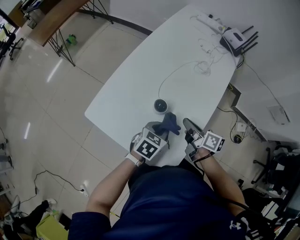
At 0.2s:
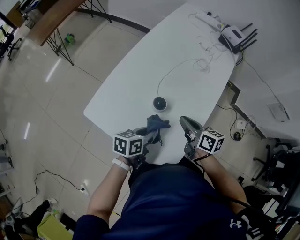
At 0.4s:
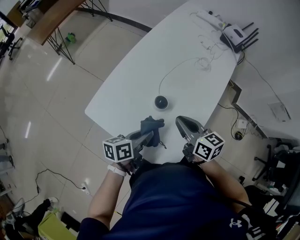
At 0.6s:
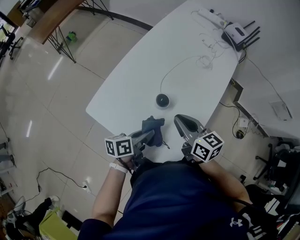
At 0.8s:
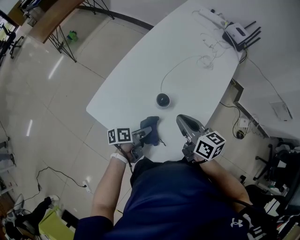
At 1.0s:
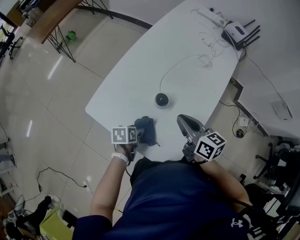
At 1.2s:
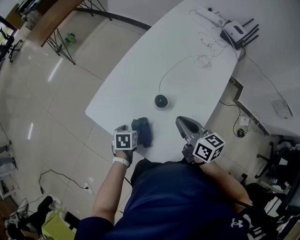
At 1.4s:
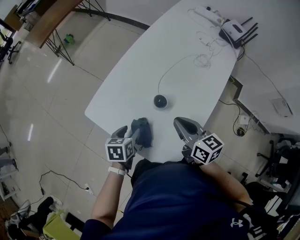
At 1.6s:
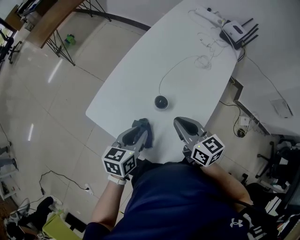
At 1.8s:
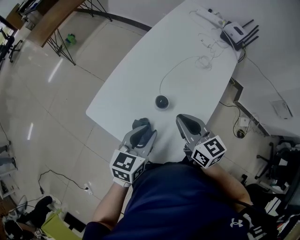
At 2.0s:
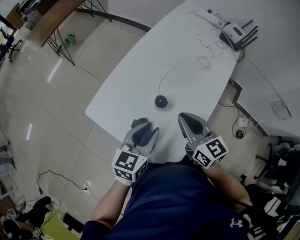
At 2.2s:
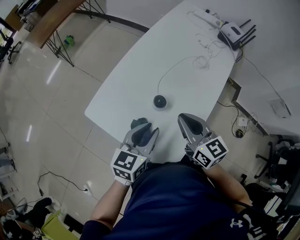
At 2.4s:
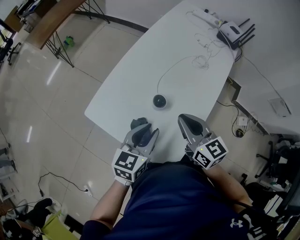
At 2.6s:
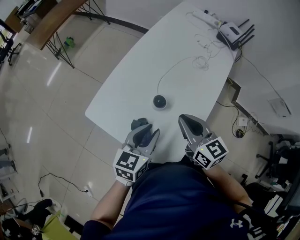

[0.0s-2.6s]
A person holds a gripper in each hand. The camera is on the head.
0.0s to 1.2s: The left gripper goes approximately 20 cm to the left and downward, turns by about 40 degrees, and opens. The right gripper is displaced upward and to the left by roughly 10 cm, and turns by about 20 degrees.
1.2s to 2.6s: The right gripper heads upward, covering some 5 cm. The left gripper moves upward and to the right, roughly 20 cm, points its fingers some 40 degrees further upward, and closes.

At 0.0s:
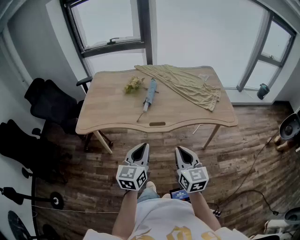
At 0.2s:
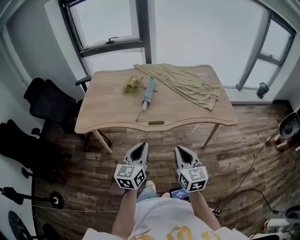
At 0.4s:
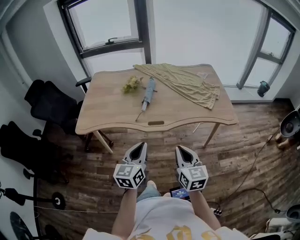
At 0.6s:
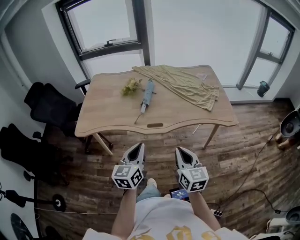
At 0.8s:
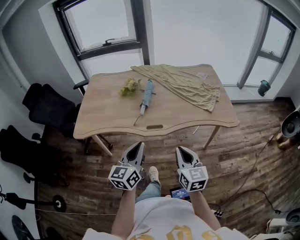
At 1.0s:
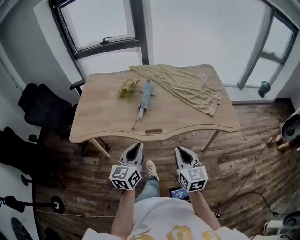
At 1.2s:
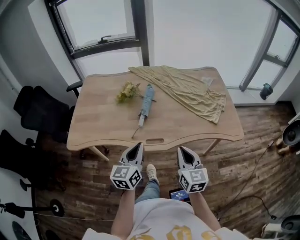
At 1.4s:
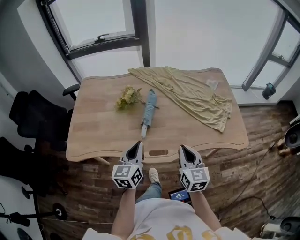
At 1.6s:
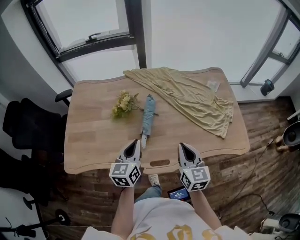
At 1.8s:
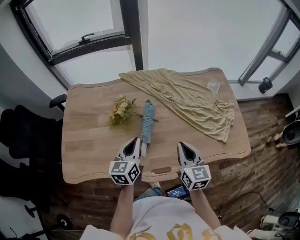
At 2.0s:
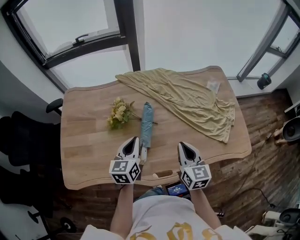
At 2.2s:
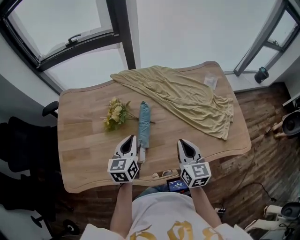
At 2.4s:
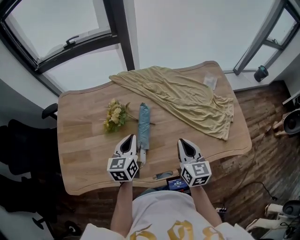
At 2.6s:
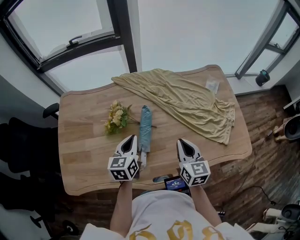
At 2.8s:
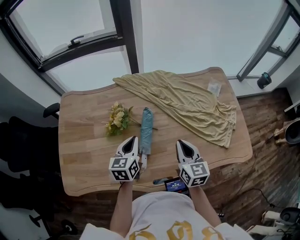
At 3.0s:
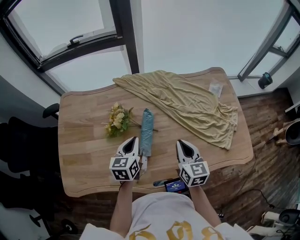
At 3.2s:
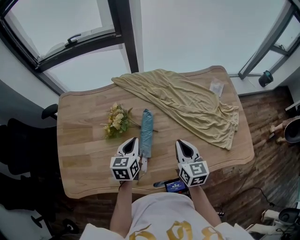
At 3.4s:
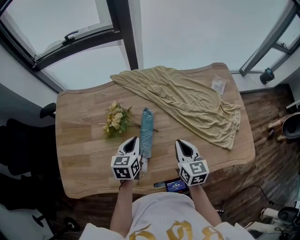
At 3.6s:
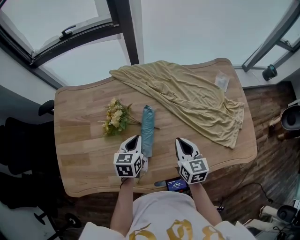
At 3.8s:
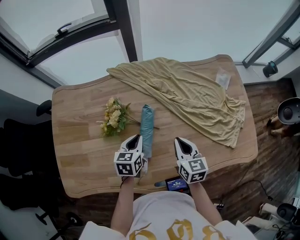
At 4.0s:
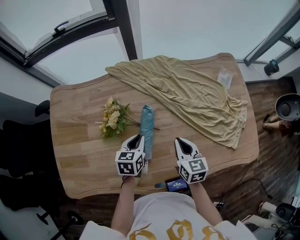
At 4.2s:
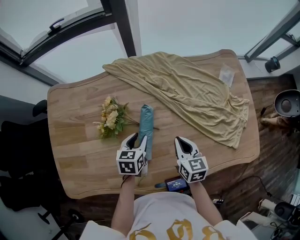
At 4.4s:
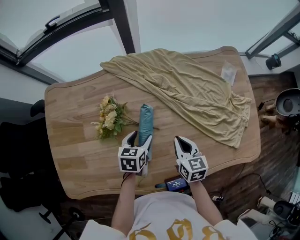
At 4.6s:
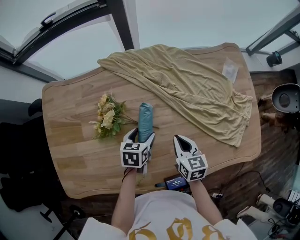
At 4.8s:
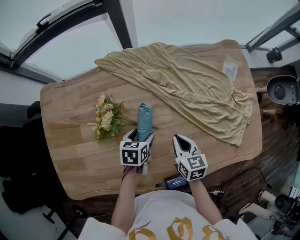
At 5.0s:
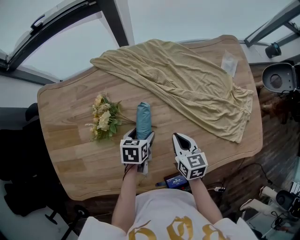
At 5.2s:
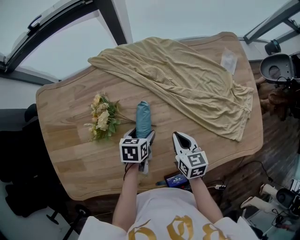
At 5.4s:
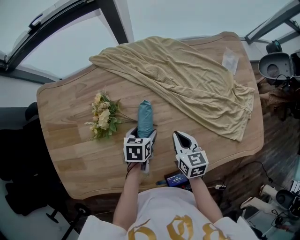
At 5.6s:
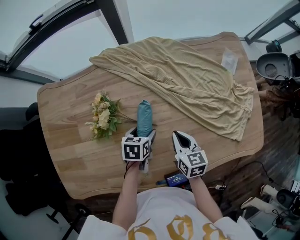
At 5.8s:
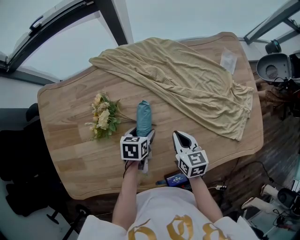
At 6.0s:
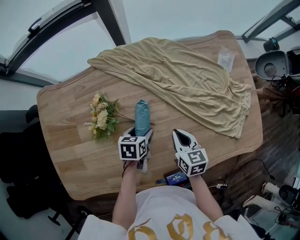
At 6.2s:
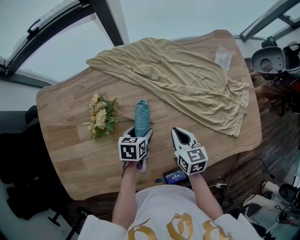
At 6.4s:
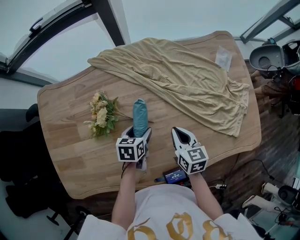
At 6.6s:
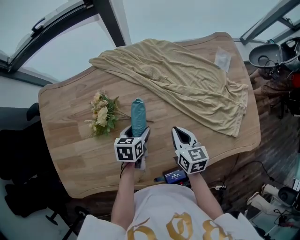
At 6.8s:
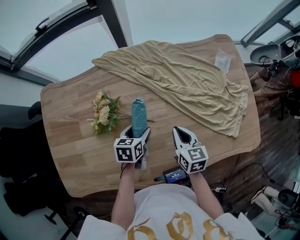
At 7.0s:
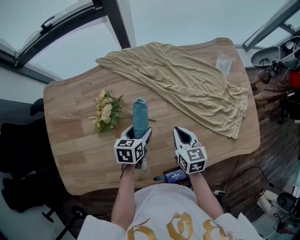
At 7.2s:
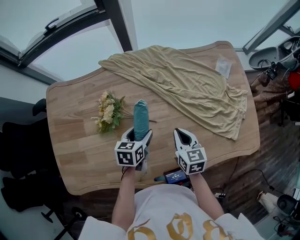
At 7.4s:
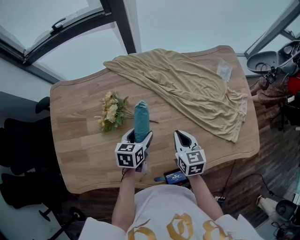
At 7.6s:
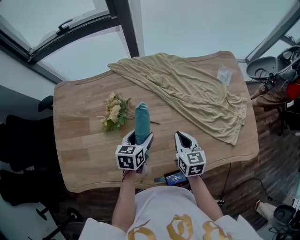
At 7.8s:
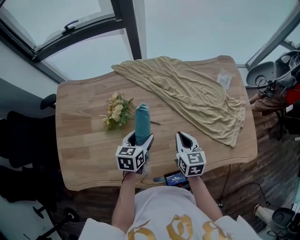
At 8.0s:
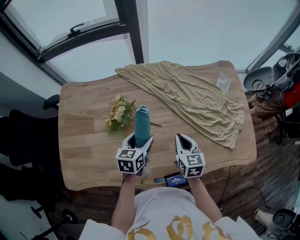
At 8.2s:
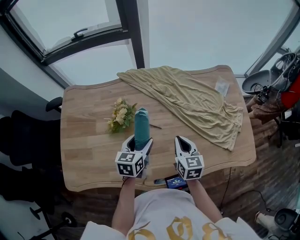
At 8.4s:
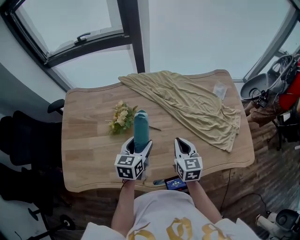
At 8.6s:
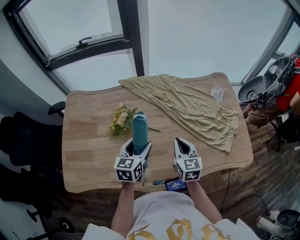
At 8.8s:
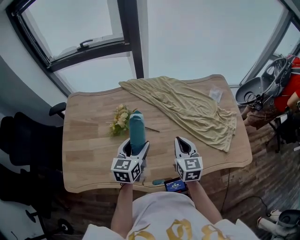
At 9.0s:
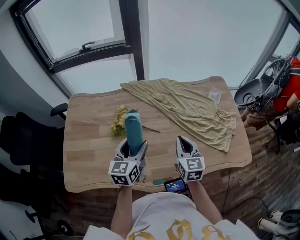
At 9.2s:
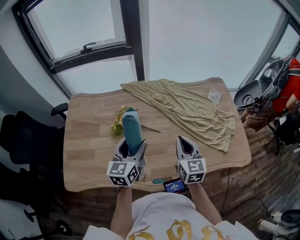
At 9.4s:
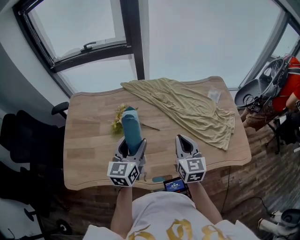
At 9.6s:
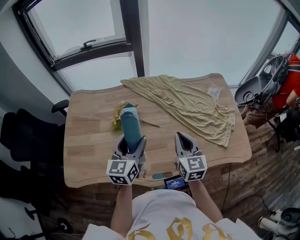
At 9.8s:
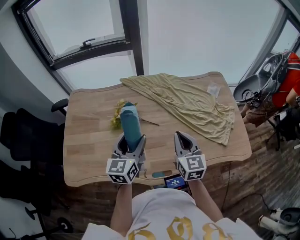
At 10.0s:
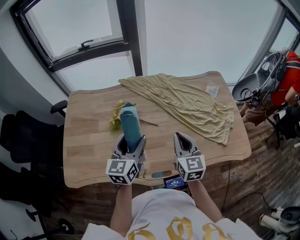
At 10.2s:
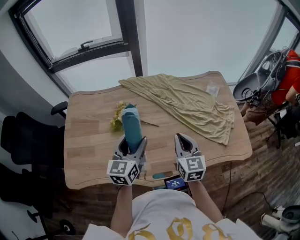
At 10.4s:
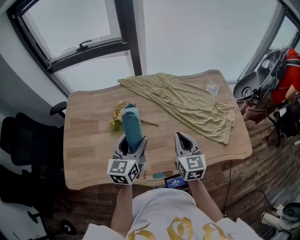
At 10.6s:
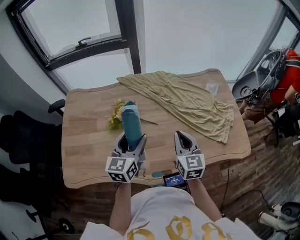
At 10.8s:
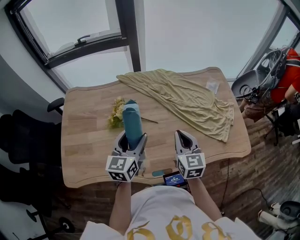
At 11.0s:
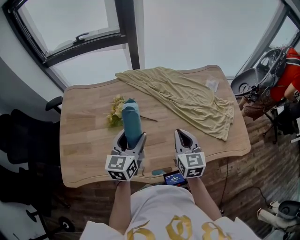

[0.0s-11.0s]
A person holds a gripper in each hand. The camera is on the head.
0.0s to 1.6s: Both grippers move forward, about 35 cm.
1.6s to 3.2s: The right gripper heads forward, covering roughly 15 cm. Meanwhile the left gripper is displaced forward and downward by approximately 20 cm.
3.2s to 4.8s: The right gripper travels downward and forward by roughly 15 cm. Meanwhile the left gripper shifts about 15 cm downward, changes its angle by roughly 30 degrees, and opens.
4.8s to 6.2s: The grippers stay close to where they were, moving slightly.
6.2s to 7.8s: The right gripper shifts about 5 cm upward. Meanwhile the left gripper moves upward, roughly 10 cm, and changes its angle by approximately 20 degrees.
7.8s to 9.4s: The grippers both shift upward and backward by roughly 15 cm. The left gripper changes its angle by roughly 30 degrees.
9.4s to 11.0s: The grippers move only a little.

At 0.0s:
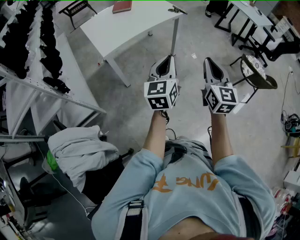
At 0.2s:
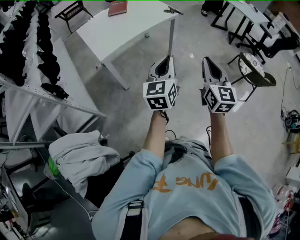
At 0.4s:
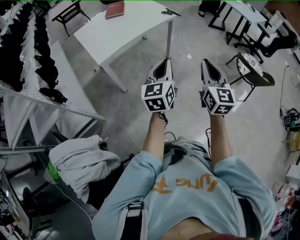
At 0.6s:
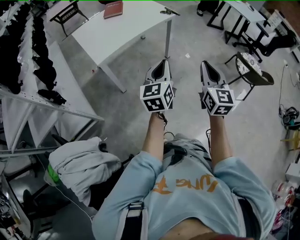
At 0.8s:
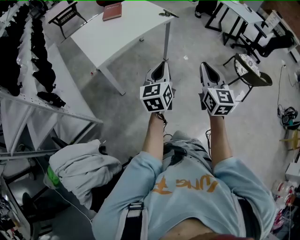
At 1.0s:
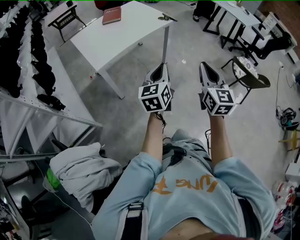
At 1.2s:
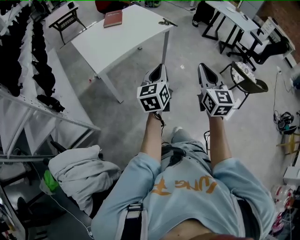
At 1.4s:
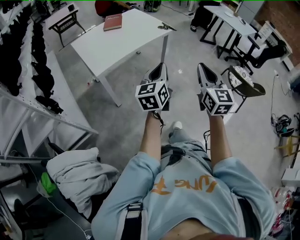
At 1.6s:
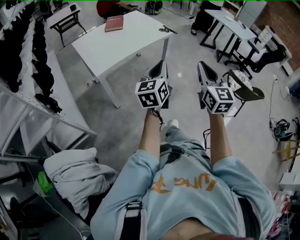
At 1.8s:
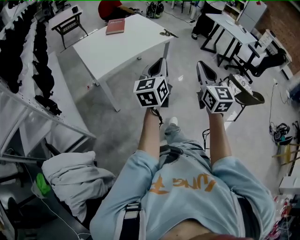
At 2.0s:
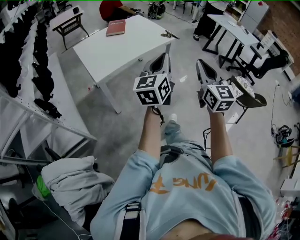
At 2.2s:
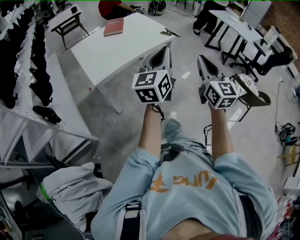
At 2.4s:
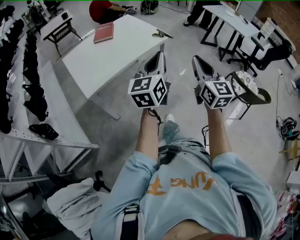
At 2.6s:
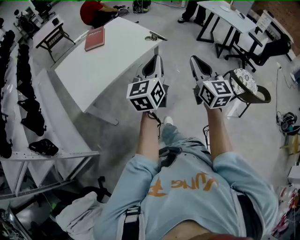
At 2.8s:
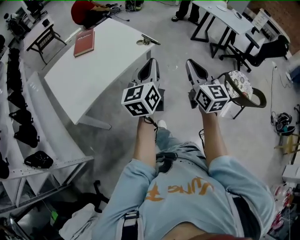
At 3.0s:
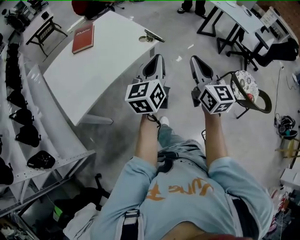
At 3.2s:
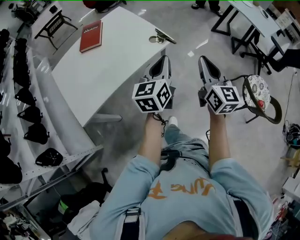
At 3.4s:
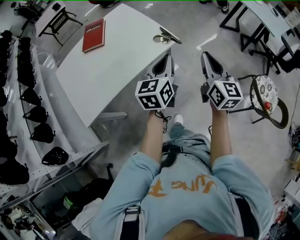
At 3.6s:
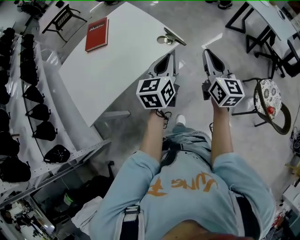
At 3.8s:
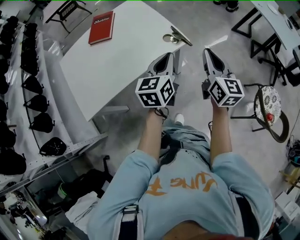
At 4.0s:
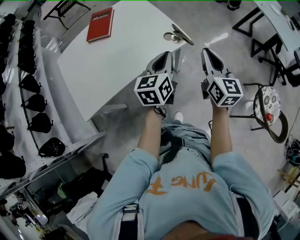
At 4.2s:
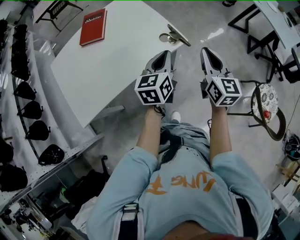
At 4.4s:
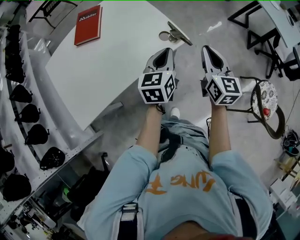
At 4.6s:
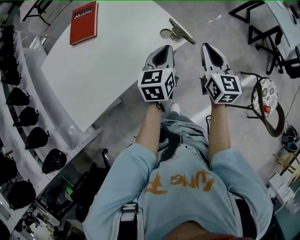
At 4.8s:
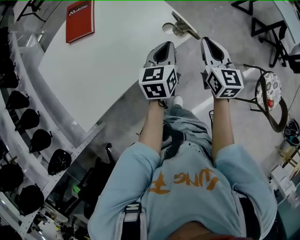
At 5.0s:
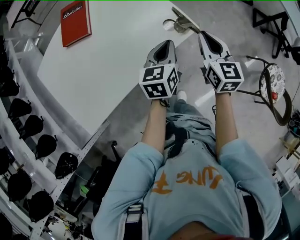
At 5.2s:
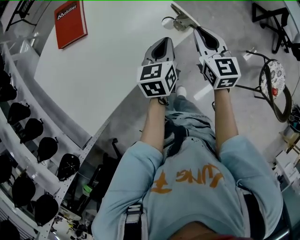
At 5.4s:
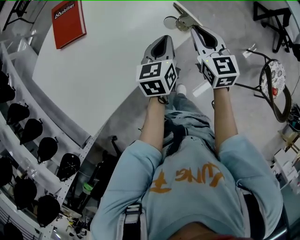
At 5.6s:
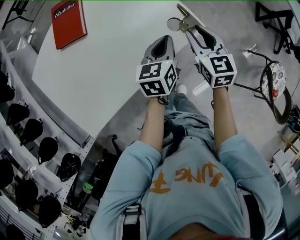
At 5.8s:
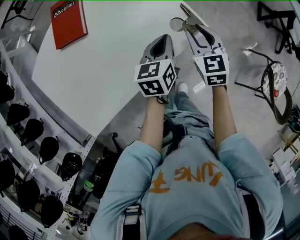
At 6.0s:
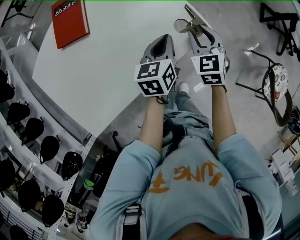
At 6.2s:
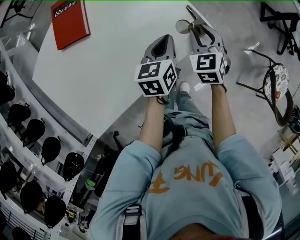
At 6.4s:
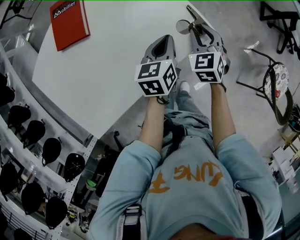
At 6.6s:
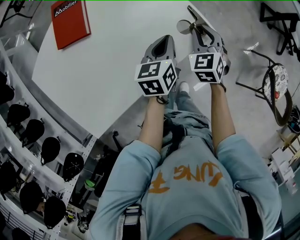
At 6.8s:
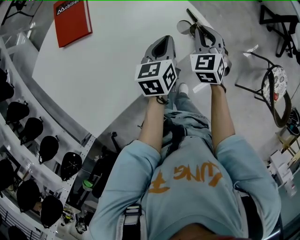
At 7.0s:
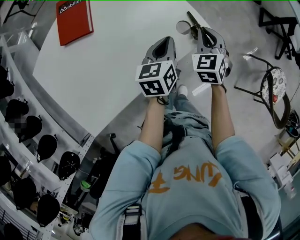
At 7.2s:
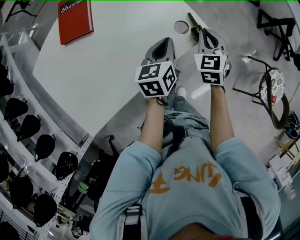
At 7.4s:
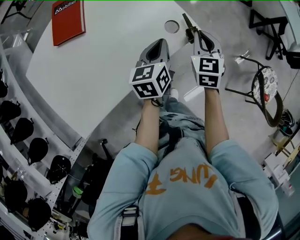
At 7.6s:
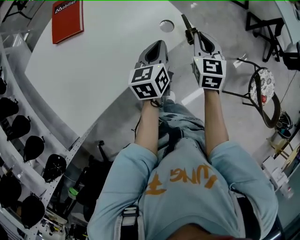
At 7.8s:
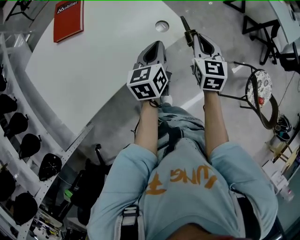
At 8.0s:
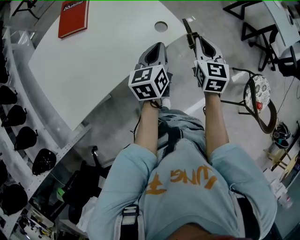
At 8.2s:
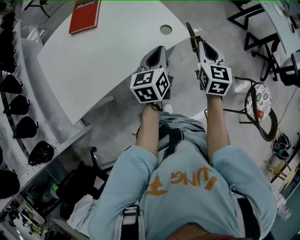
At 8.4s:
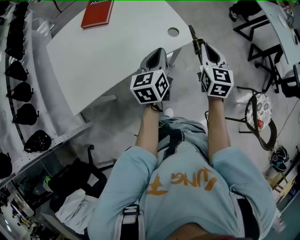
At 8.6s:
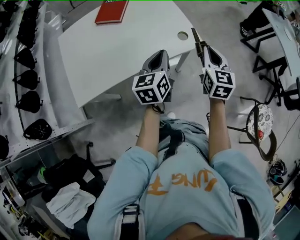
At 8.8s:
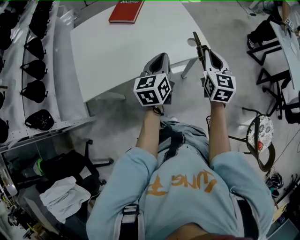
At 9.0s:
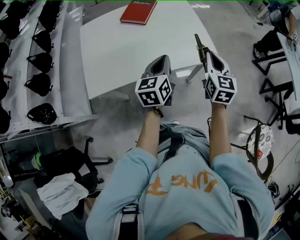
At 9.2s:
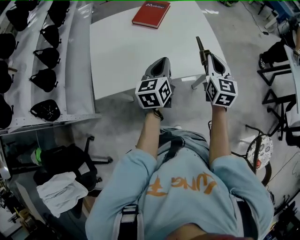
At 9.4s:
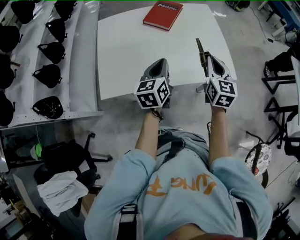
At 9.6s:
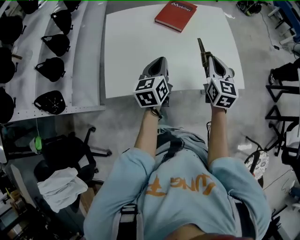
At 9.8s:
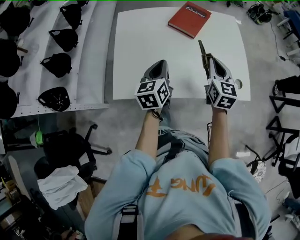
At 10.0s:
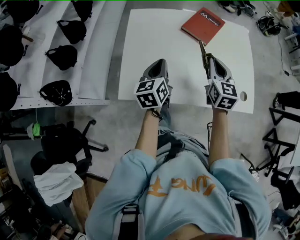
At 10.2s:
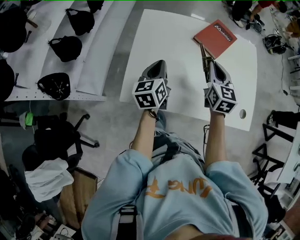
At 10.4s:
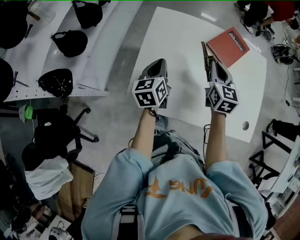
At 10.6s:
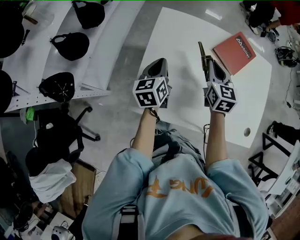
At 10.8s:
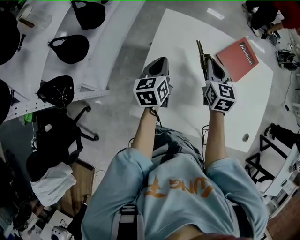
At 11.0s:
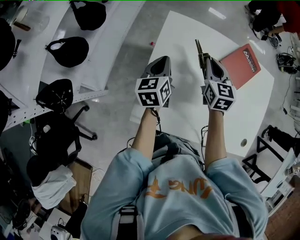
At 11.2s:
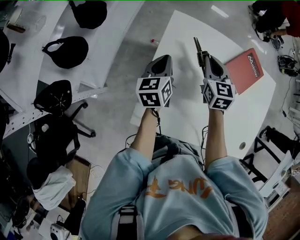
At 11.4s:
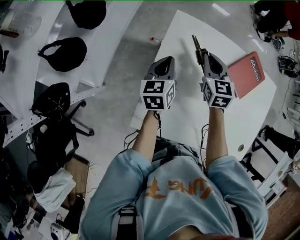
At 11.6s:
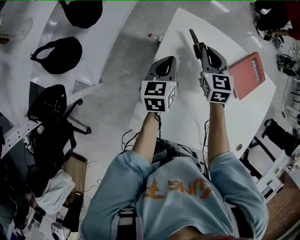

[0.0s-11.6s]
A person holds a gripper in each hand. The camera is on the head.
0.0s to 1.4s: The left gripper travels forward by approximately 5 cm.
1.4s to 2.8s: Both grippers travel together forward, some 30 cm.
2.8s to 4.4s: The right gripper is displaced forward by roughly 30 cm, while the left gripper shifts some 30 cm forward and downward, and swivels some 20 degrees.
4.4s to 5.8s: Both grippers move downward, forward and to the left, roughly 20 cm. The right gripper turns by roughly 30 degrees, and opens.
5.8s to 7.2s: The right gripper closes.
7.2s to 8.8s: The right gripper is displaced upward and backward by about 20 cm, and turns by approximately 30 degrees. Meanwhile the left gripper goes roughly 20 cm backward and upward, and changes its angle by some 30 degrees.
8.8s to 10.2s: The left gripper moves some 40 cm, and swivels roughly 30 degrees, while the right gripper shifts by about 40 cm, and changes its angle by approximately 30 degrees.
10.2s to 11.6s: The left gripper is displaced forward, to the left and downward by approximately 25 cm. Meanwhile the right gripper moves forward and to the left, about 30 cm, and rotates roughly 30 degrees.
